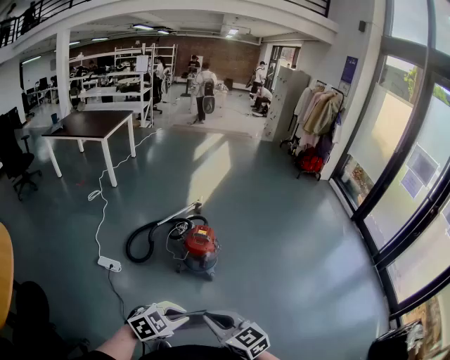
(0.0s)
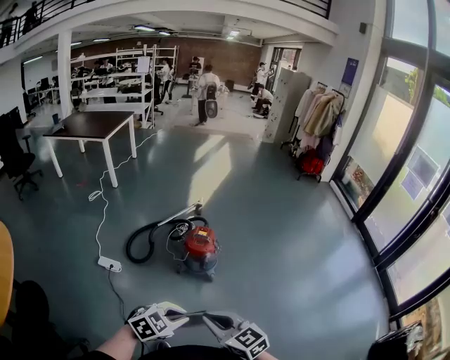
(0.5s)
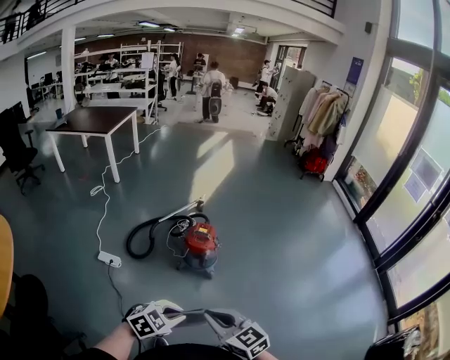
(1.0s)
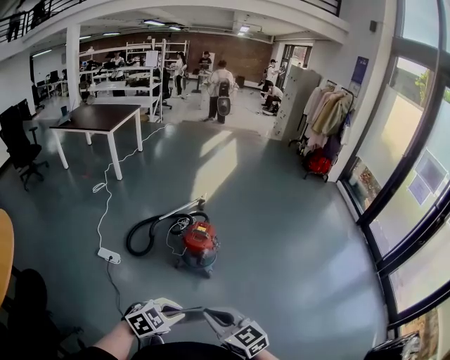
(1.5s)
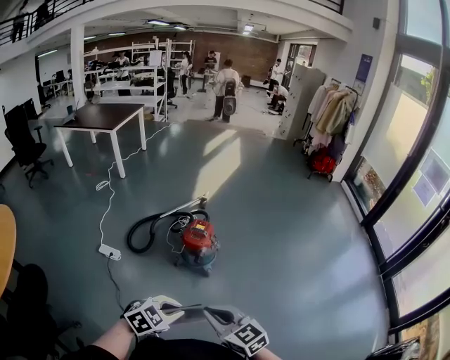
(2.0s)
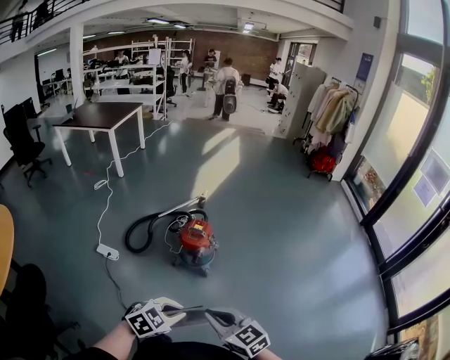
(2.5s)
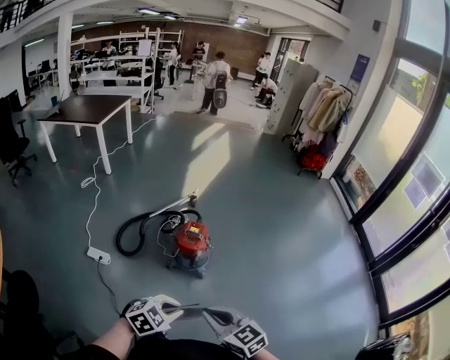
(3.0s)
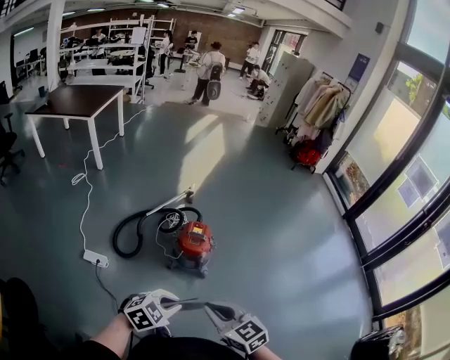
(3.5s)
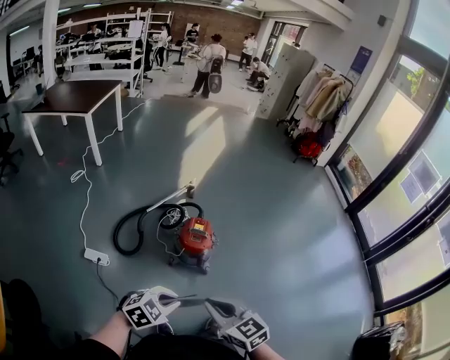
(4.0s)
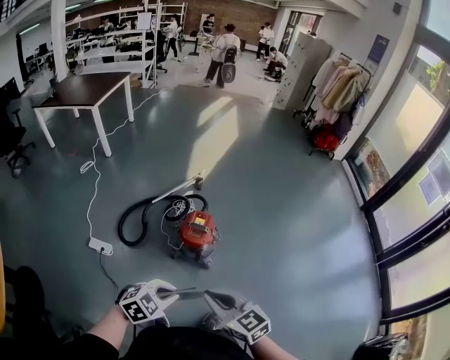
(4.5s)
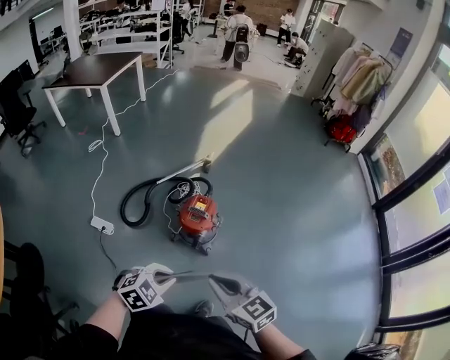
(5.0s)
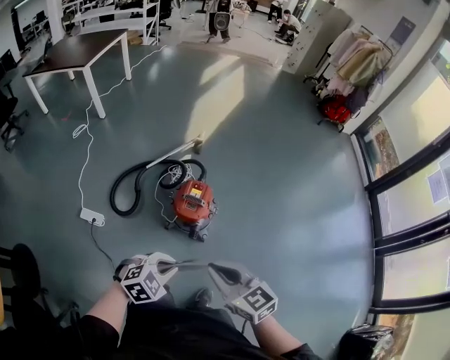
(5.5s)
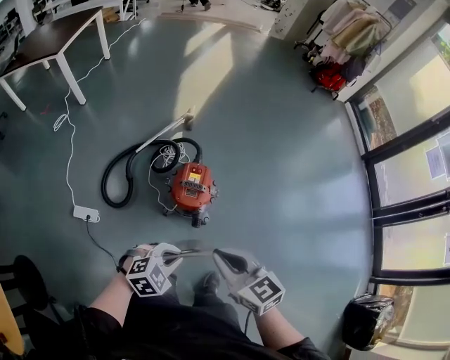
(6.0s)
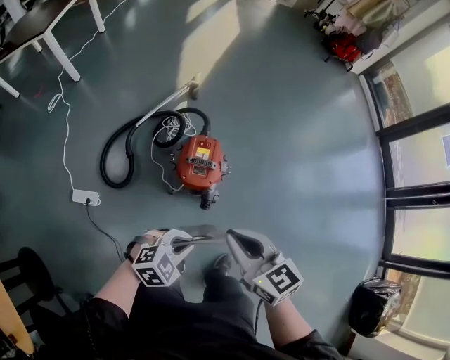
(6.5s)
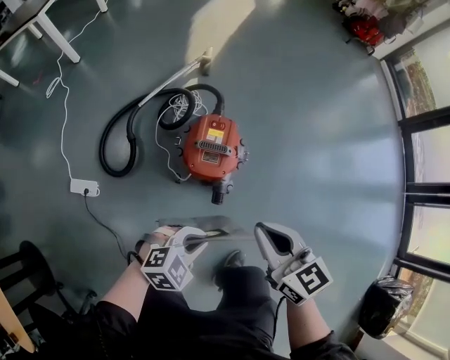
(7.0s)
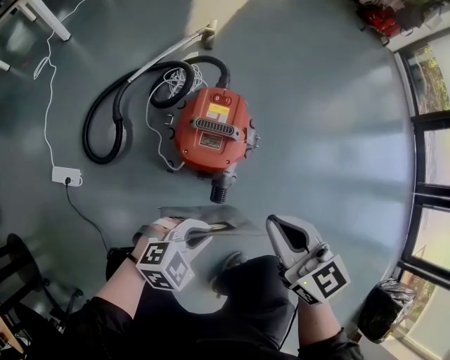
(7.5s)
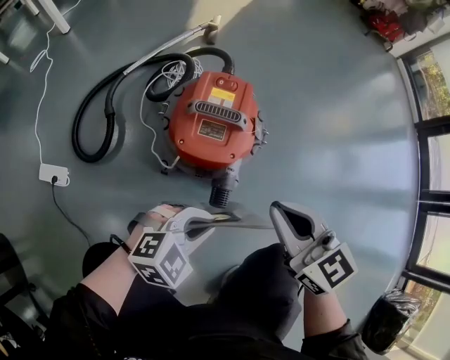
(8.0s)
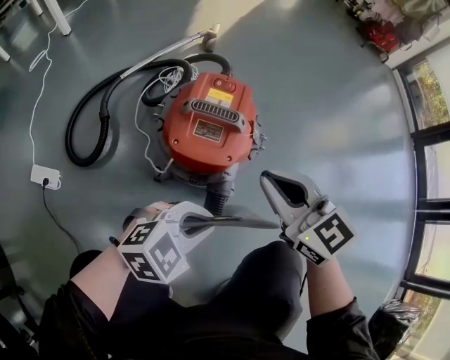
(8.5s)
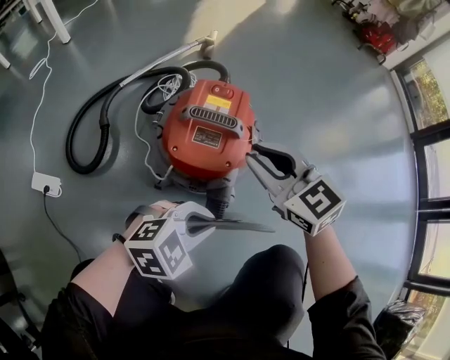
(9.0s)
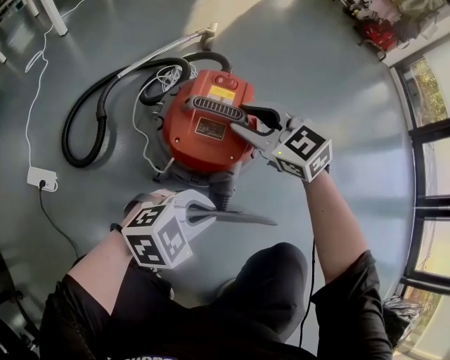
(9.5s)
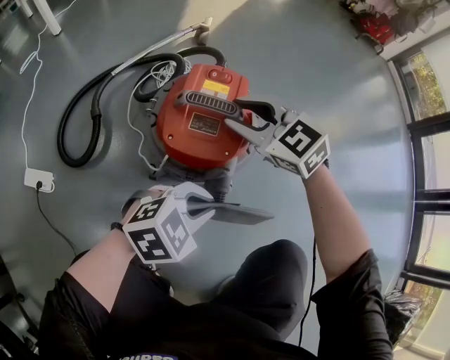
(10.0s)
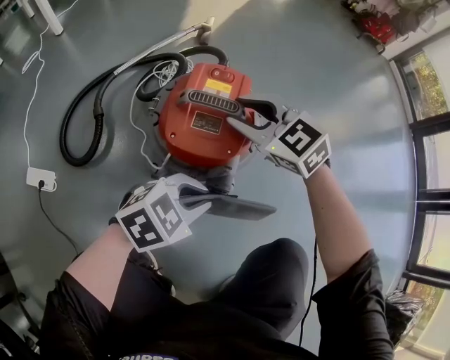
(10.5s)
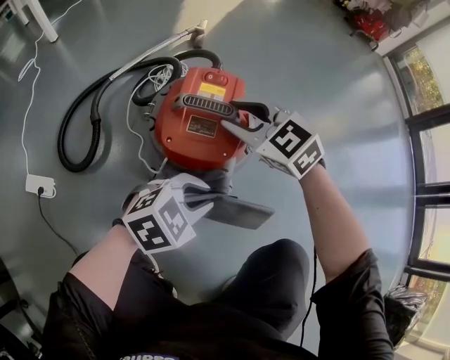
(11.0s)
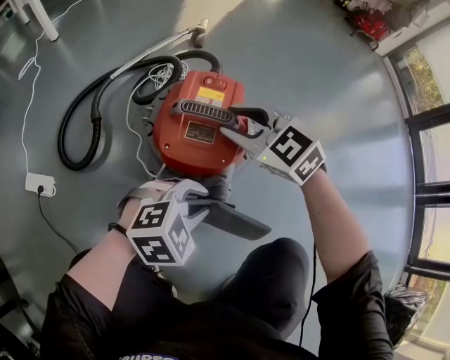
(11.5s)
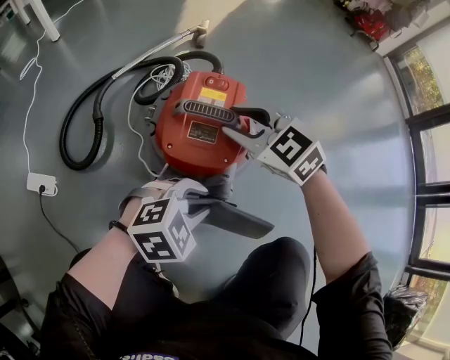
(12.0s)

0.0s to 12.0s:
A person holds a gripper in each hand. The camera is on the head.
0.0s to 2.0s: Both grippers travel together to the right, some 10 cm.
2.0s to 4.0s: The grippers both shift to the left and forward by approximately 20 cm.
4.0s to 6.0s: The right gripper shifts about 20 cm forward. The left gripper travels forward and downward by roughly 20 cm.
6.0s to 8.0s: The two grippers go some 35 cm downward.
8.0s to 10.0s: The left gripper changes place by some 5 cm. Meanwhile the right gripper ends up some 20 cm from where it was, turns by approximately 30 degrees, and opens up.
10.0s to 12.0s: The grippers make only small movements.

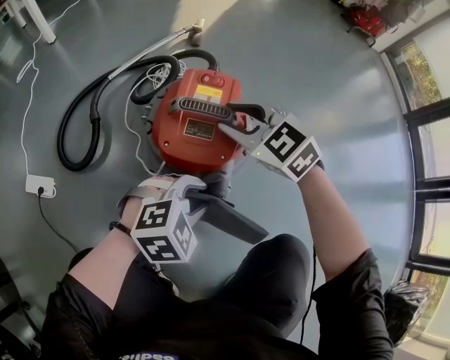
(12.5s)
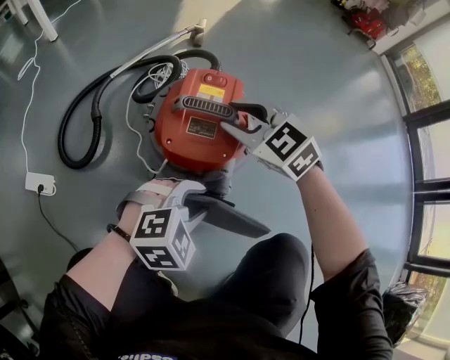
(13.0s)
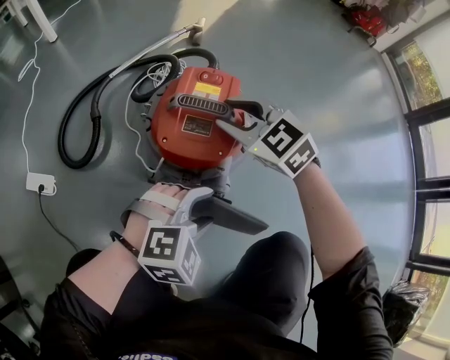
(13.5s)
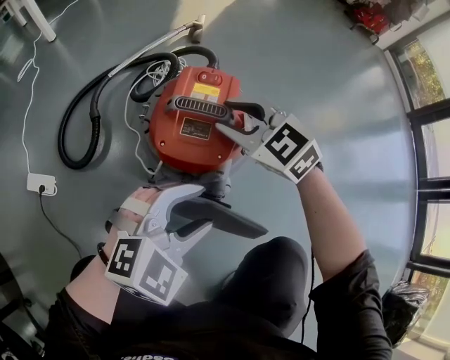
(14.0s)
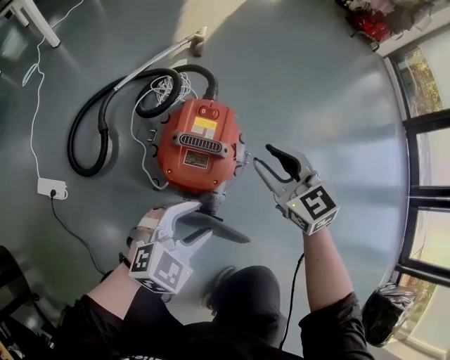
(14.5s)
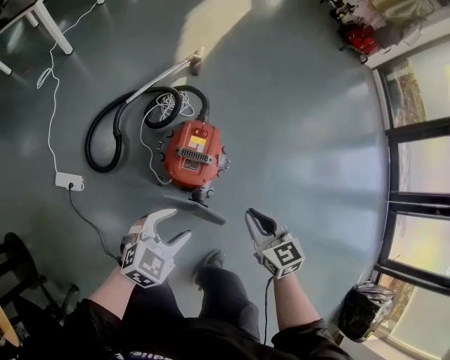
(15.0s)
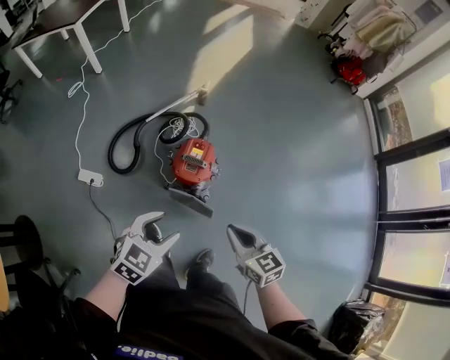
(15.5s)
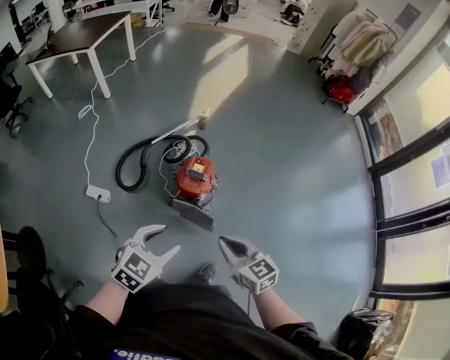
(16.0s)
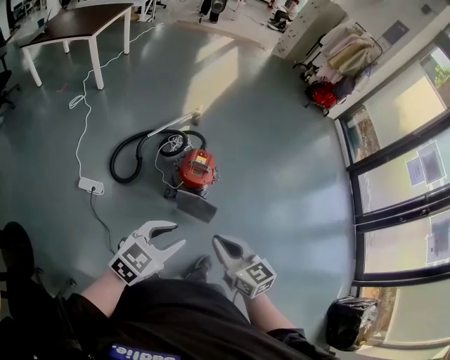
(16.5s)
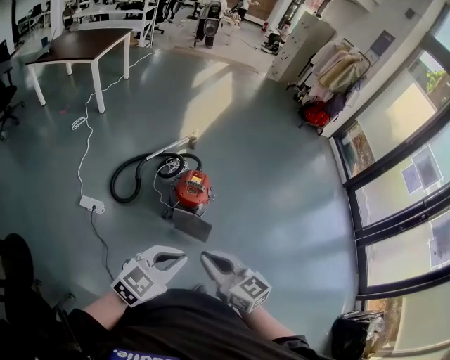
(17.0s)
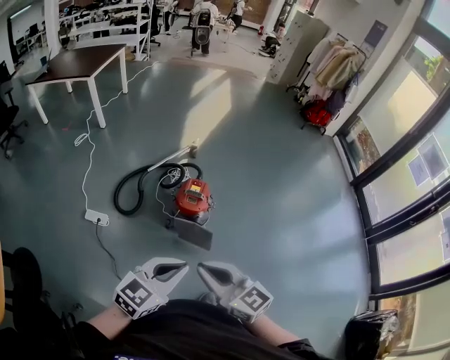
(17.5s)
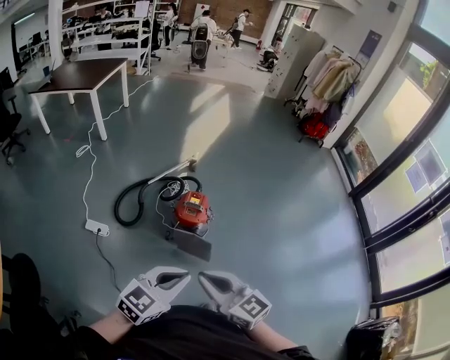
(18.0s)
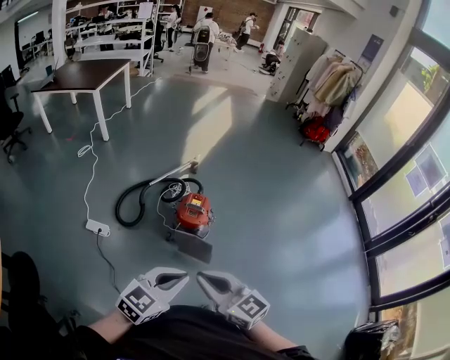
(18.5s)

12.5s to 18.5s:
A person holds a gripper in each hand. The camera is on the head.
12.5s to 14.5s: The right gripper travels to the right and upward by approximately 10 cm, and rotates about 20 degrees. The left gripper goes roughly 10 cm upward, changes its angle by some 20 degrees, and opens up.
14.5s to 16.5s: The two grippers go approximately 60 cm upward and backward. The left gripper swivels roughly 20 degrees, and closes up. The right gripper closes its fingers.
16.5s to 18.5s: The left gripper is displaced to the right, upward and backward by about 10 cm, and closes its fingers, while the right gripper is displaced upward and backward by roughly 10 cm.

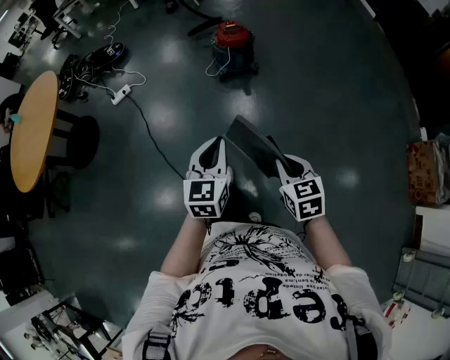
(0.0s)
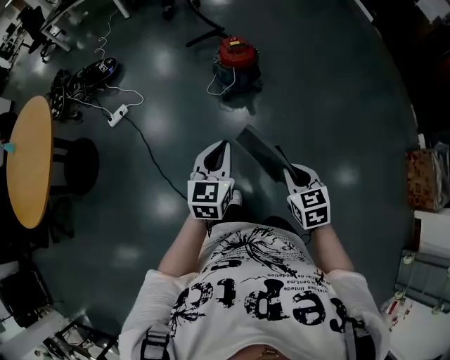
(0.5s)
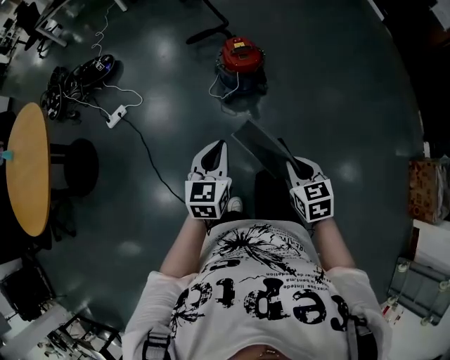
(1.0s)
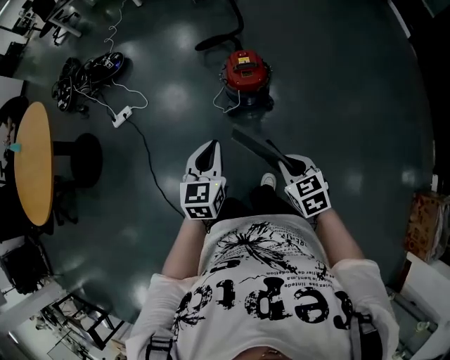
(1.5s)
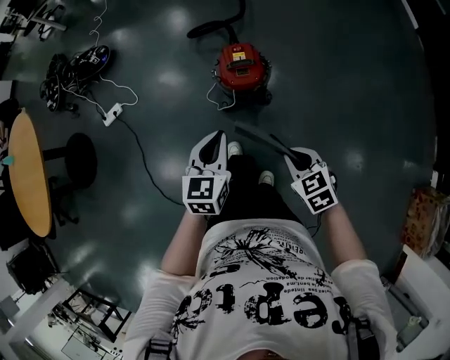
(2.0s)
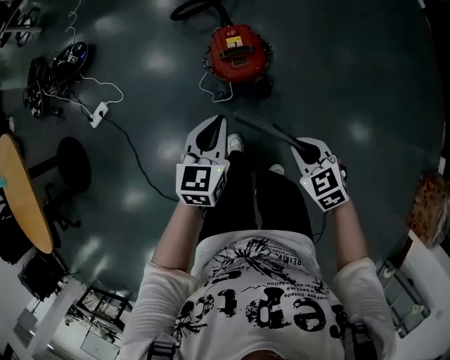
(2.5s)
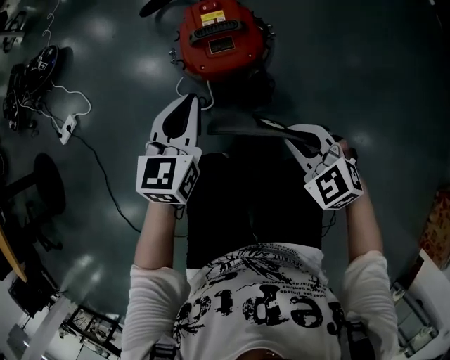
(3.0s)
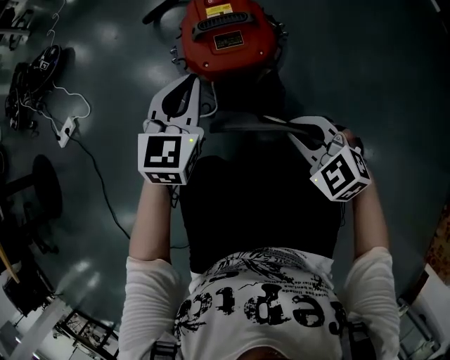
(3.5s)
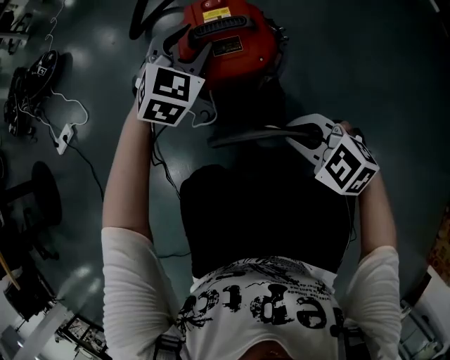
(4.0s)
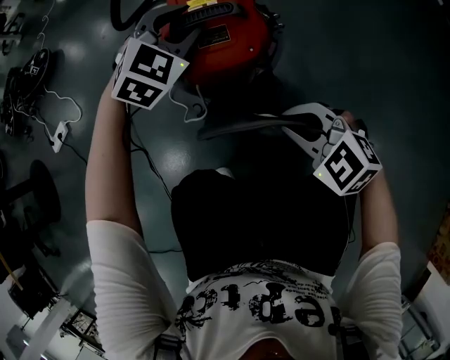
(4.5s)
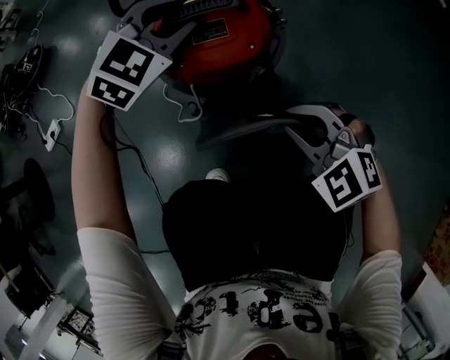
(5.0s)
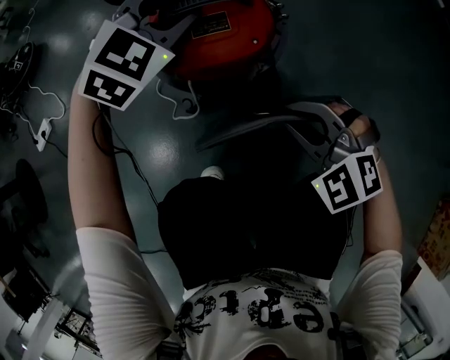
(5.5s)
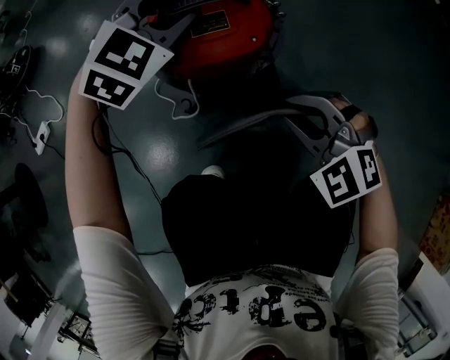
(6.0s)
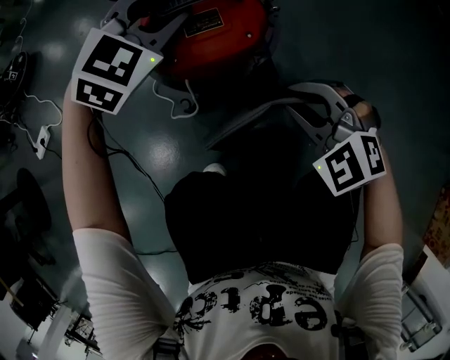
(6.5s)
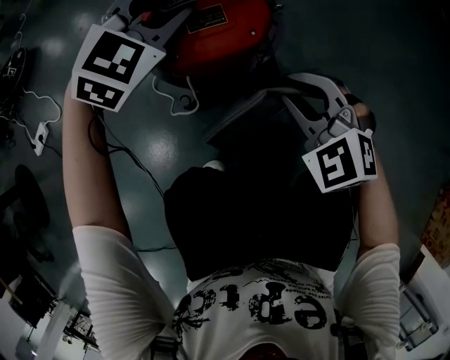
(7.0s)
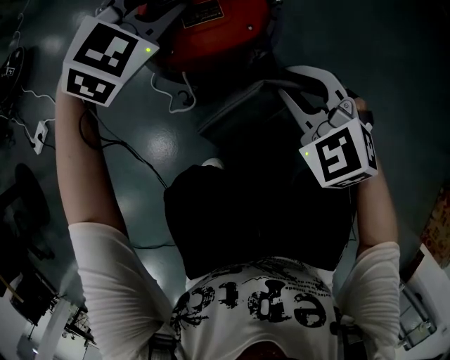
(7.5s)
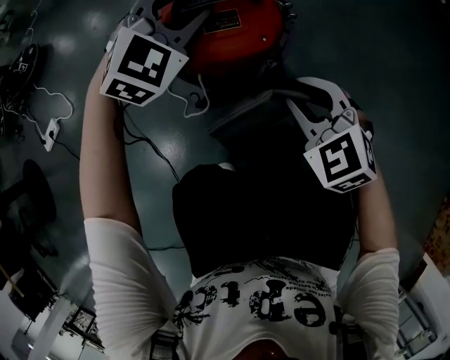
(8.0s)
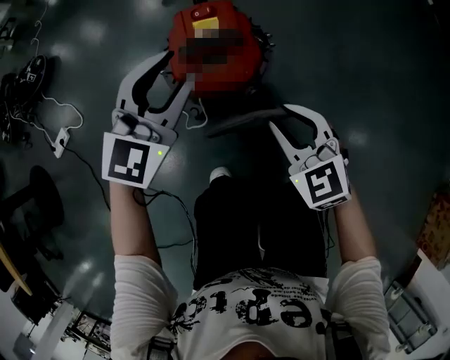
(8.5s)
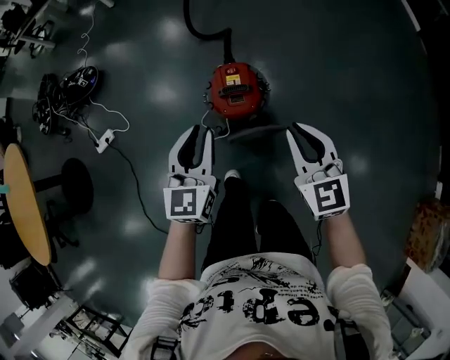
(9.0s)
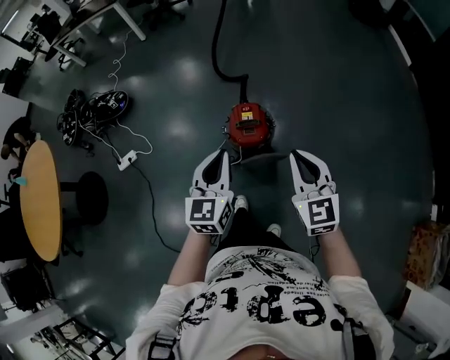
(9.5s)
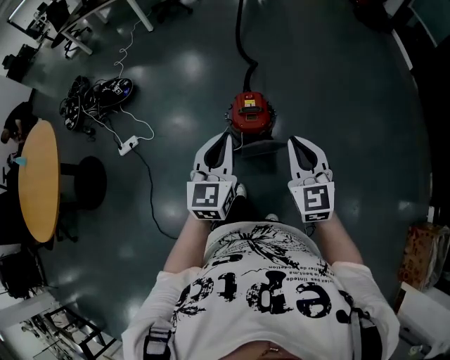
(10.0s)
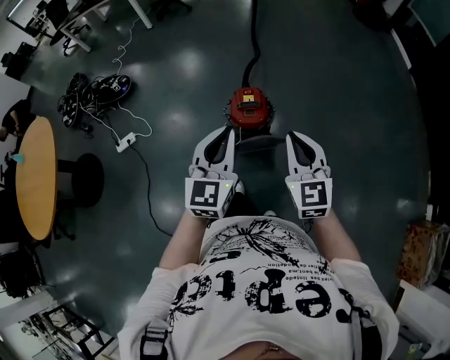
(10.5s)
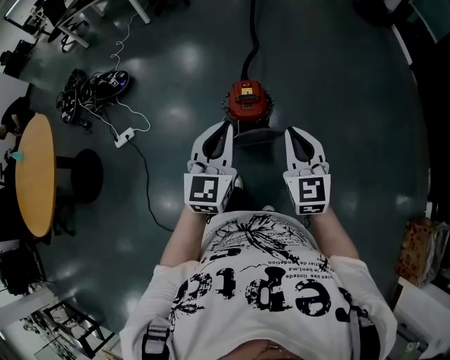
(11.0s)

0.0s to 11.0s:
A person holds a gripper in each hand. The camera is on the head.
0.0s to 2.0s: The two grippers travel together, forward, some 60 cm. The right gripper changes its angle by some 20 degrees.
2.0s to 3.5s: Both grippers move downward and forward, some 40 cm. The right gripper changes its angle by roughly 30 degrees; the left gripper swivels some 20 degrees.
3.5s to 5.5s: The left gripper goes about 15 cm forward and to the right, swivels some 40 degrees, and opens up.
5.5s to 7.5s: The right gripper turns by about 20 degrees.
7.5s to 9.0s: The right gripper moves upward, approximately 50 cm, and turns by some 30 degrees, while the left gripper shifts roughly 50 cm upward and backward, and turns by some 60 degrees.
9.0s to 11.0s: Both grippers move upward and backward, some 20 cm. The left gripper closes.
